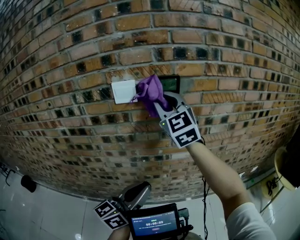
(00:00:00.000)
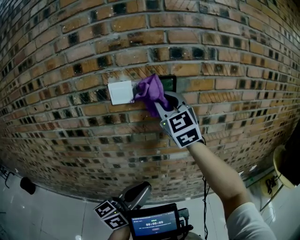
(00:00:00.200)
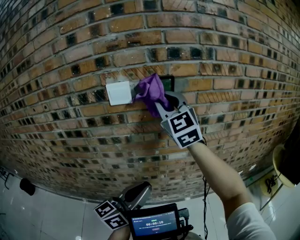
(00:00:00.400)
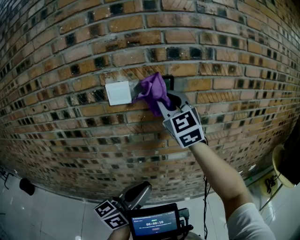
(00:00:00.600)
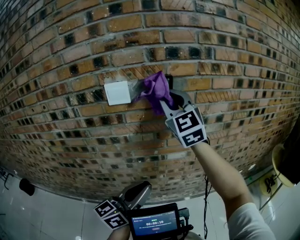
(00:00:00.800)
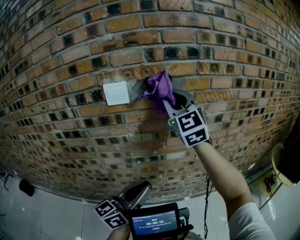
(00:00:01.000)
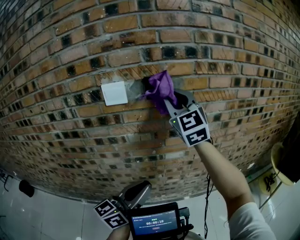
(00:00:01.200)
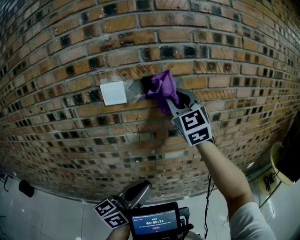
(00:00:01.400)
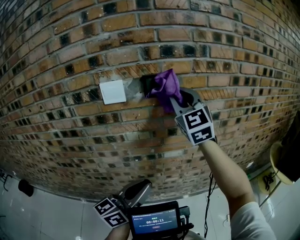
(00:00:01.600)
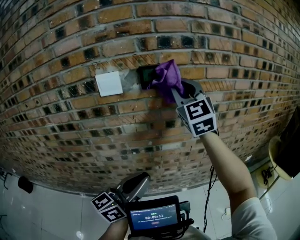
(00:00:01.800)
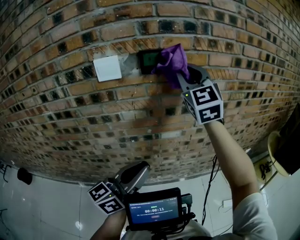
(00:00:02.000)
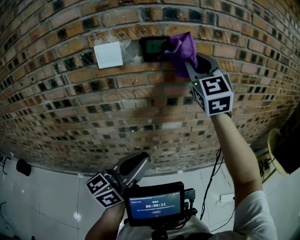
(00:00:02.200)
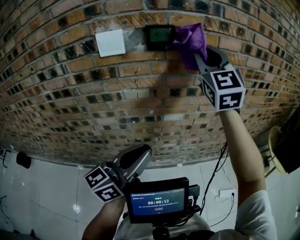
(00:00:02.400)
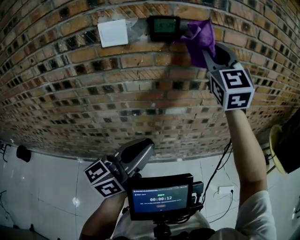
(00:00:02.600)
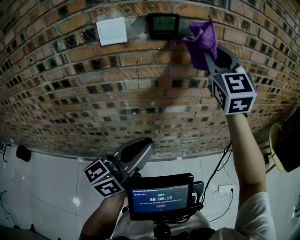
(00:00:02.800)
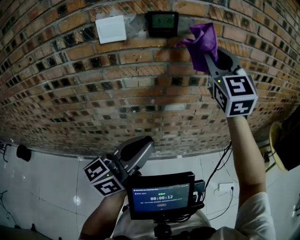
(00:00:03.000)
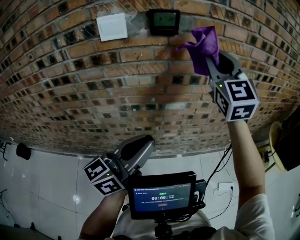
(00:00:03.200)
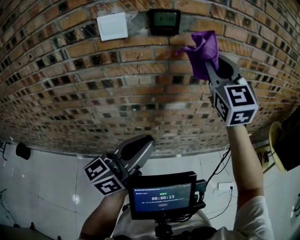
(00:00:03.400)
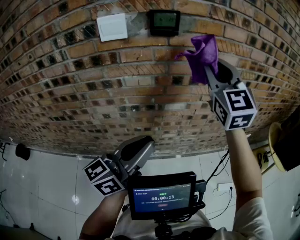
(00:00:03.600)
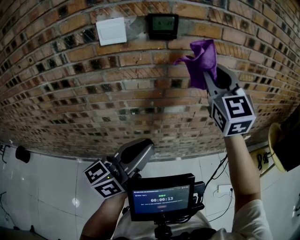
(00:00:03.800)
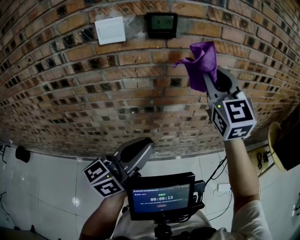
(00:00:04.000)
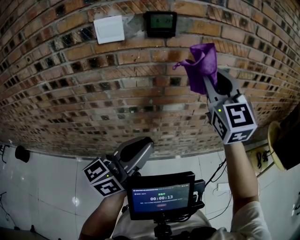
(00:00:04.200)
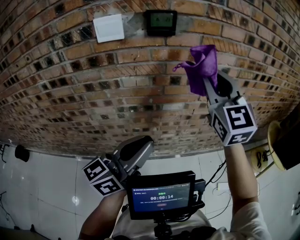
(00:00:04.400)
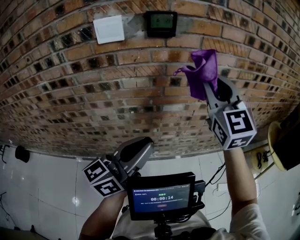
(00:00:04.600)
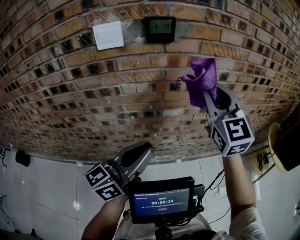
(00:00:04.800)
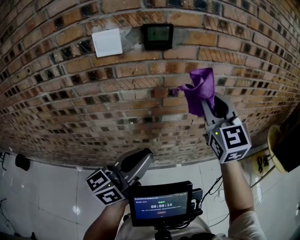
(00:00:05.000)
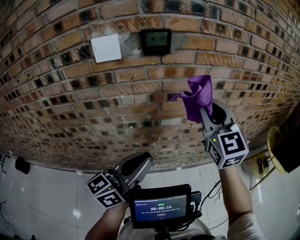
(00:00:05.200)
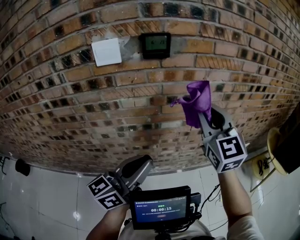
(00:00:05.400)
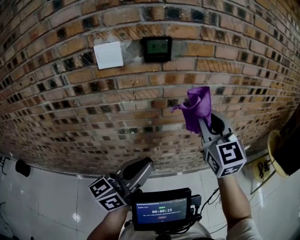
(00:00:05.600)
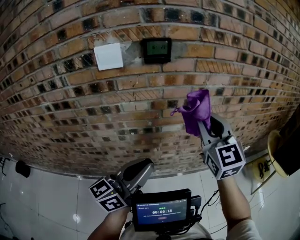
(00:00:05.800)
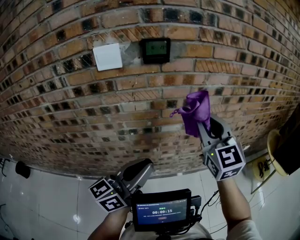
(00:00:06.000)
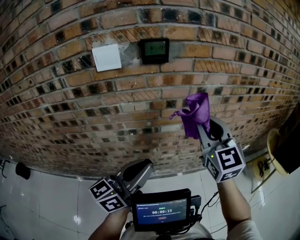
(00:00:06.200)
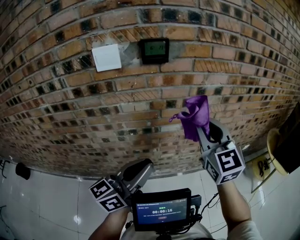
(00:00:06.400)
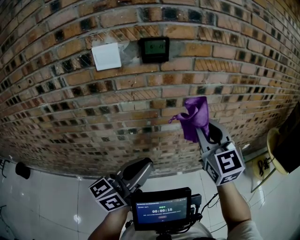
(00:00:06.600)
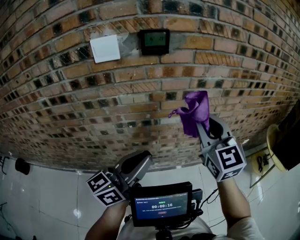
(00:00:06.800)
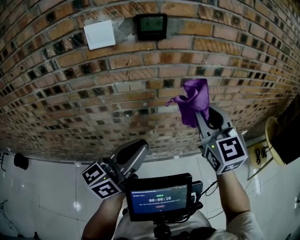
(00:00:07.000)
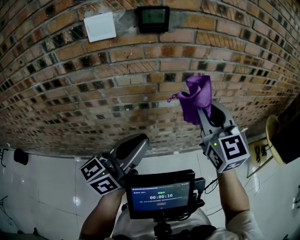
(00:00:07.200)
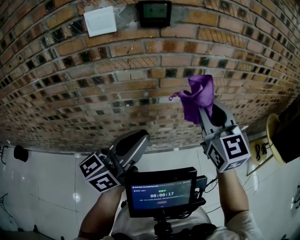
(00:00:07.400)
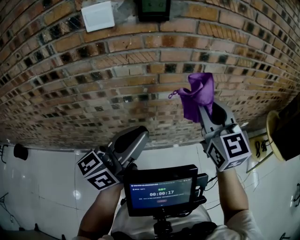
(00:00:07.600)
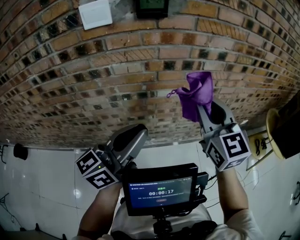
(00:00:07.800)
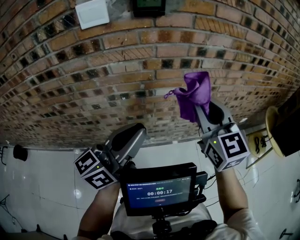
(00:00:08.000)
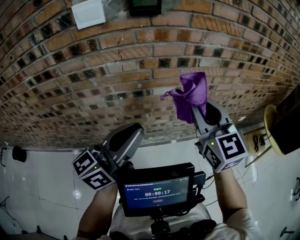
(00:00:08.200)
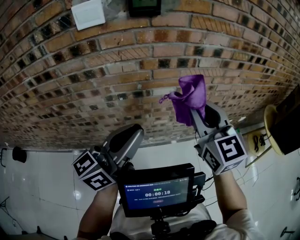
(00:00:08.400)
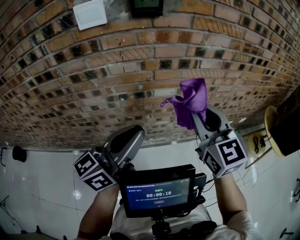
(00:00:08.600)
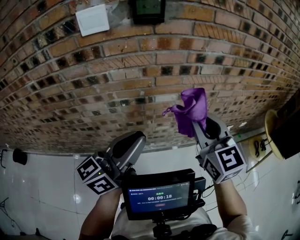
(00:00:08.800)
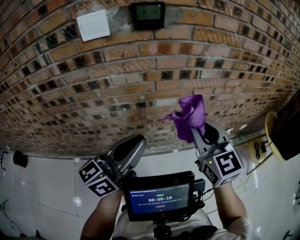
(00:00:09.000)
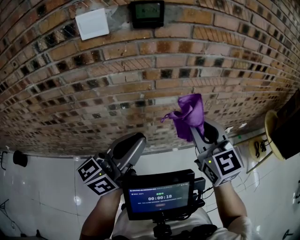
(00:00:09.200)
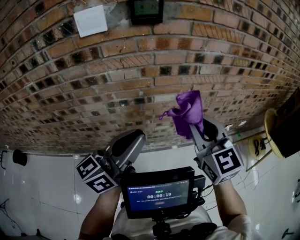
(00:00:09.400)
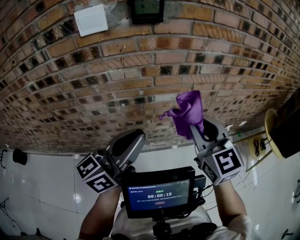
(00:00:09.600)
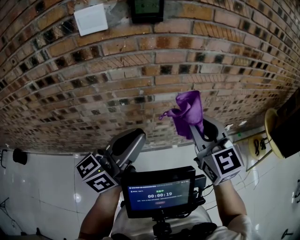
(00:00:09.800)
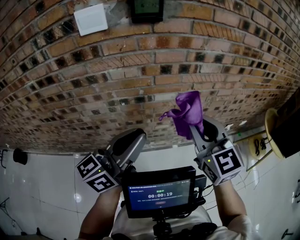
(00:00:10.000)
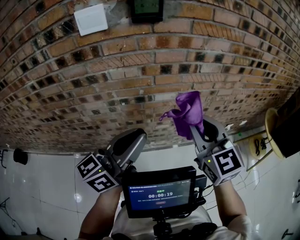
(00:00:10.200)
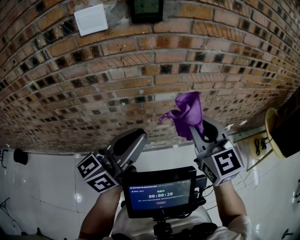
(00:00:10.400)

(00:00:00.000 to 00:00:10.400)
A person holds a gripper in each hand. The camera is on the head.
00:00:00.000 - 00:00:01.400: The right gripper shifts roughly 10 cm to the right.
00:00:01.400 - 00:00:03.000: The right gripper is displaced to the right by some 10 cm.
00:00:03.000 - 00:00:04.400: The right gripper is displaced downward by some 5 cm.
00:00:04.400 - 00:00:06.000: The right gripper goes about 5 cm downward.
00:00:06.000 - 00:00:07.400: There are only small adjustments of the grippers.
00:00:07.400 - 00:00:09.000: The right gripper ends up some 5 cm from where it was.
00:00:09.000 - 00:00:10.400: Neither gripper changes place.

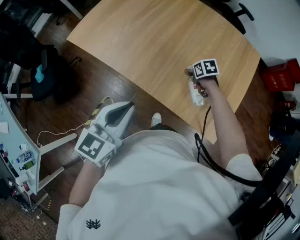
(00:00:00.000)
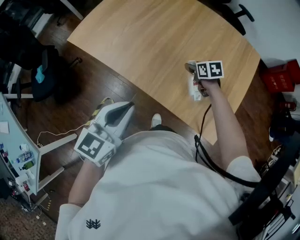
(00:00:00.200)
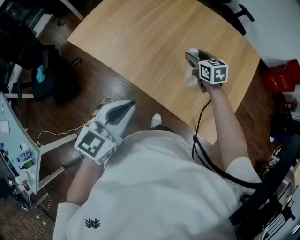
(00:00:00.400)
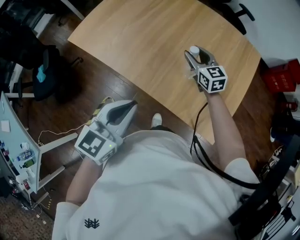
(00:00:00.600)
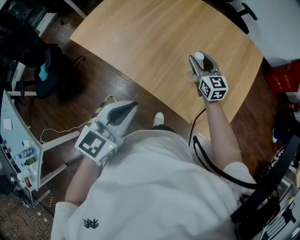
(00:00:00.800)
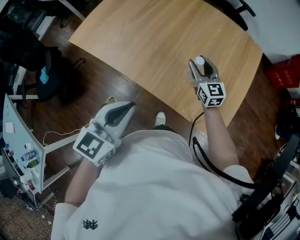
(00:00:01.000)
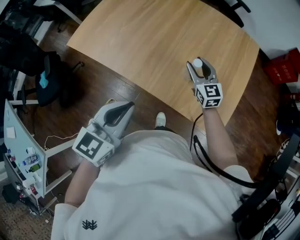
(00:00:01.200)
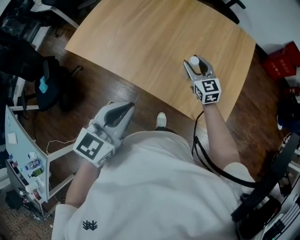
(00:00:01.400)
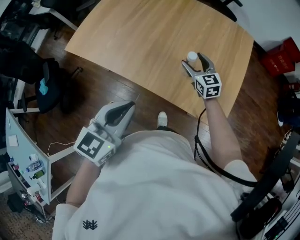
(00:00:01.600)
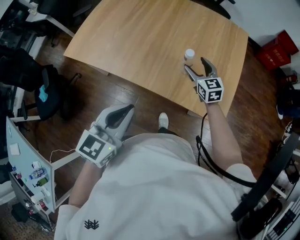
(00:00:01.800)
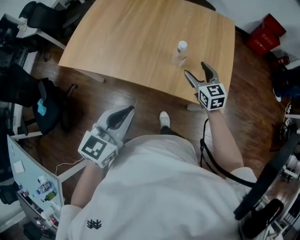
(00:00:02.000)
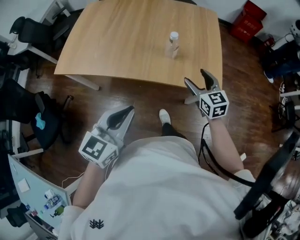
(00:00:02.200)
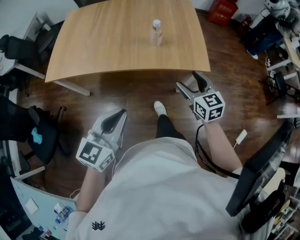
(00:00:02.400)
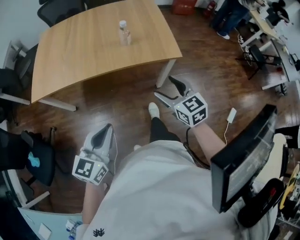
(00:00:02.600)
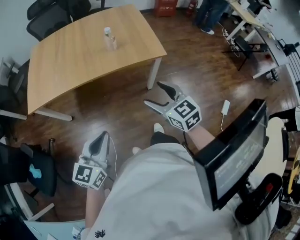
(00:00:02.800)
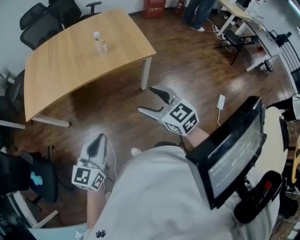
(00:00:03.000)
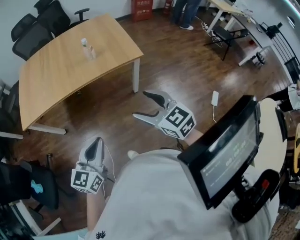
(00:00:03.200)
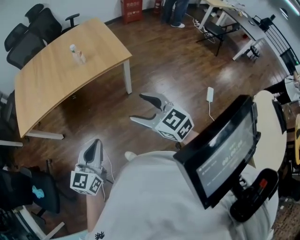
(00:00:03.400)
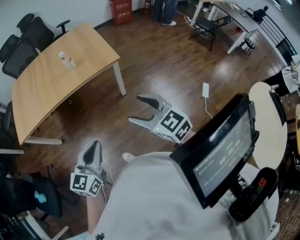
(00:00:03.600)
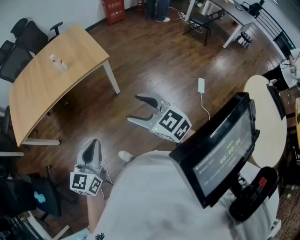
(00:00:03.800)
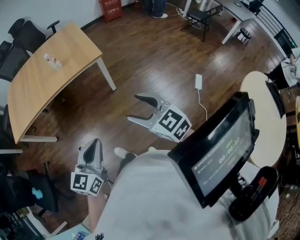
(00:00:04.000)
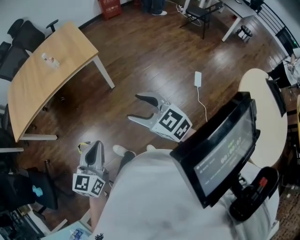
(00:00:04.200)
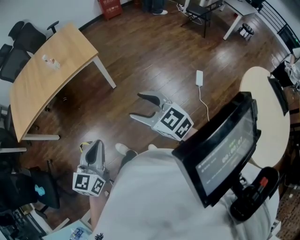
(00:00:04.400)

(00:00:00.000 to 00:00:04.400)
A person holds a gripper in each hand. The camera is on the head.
00:00:00.000 - 00:00:01.400: The right gripper travels upward by about 15 cm, and tilts its fingers roughly 50 degrees upward.
00:00:01.400 - 00:00:03.000: The right gripper ends up about 50 cm from where it was, swivels approximately 30 degrees, and opens up; the left gripper shifts by some 25 cm, and turns by approximately 30 degrees.
00:00:03.000 - 00:00:04.400: The grippers both shift to the right and backward by about 25 cm.

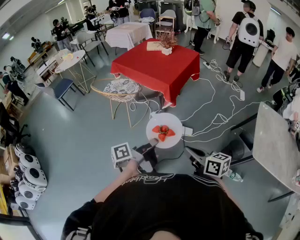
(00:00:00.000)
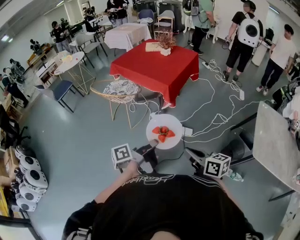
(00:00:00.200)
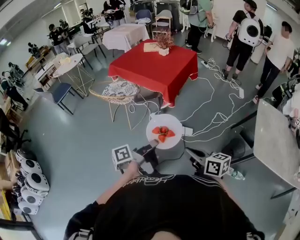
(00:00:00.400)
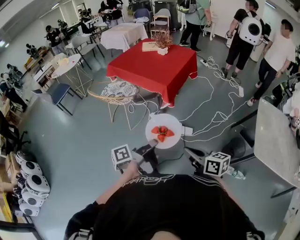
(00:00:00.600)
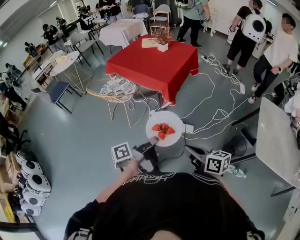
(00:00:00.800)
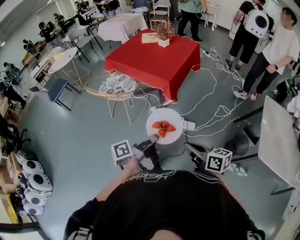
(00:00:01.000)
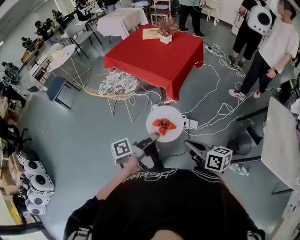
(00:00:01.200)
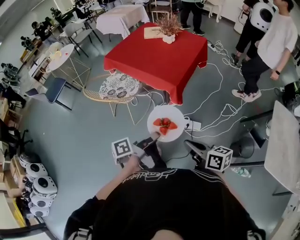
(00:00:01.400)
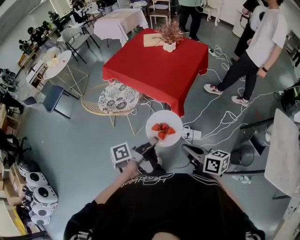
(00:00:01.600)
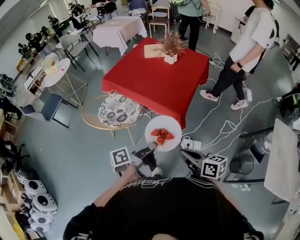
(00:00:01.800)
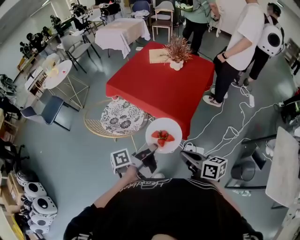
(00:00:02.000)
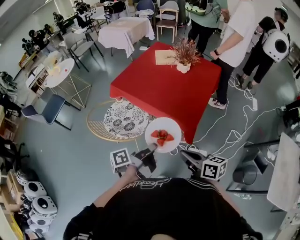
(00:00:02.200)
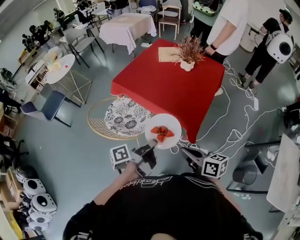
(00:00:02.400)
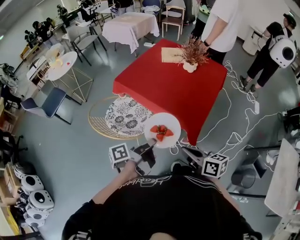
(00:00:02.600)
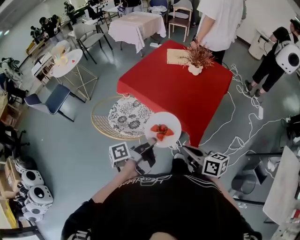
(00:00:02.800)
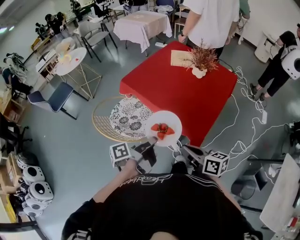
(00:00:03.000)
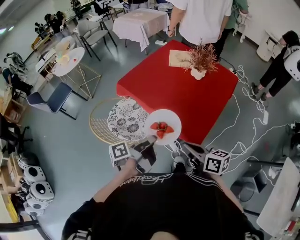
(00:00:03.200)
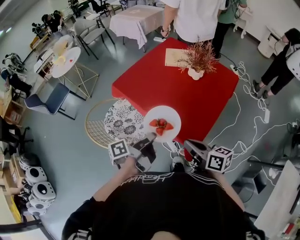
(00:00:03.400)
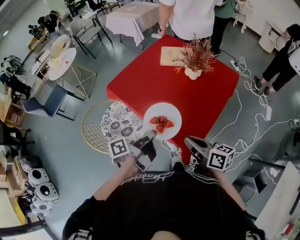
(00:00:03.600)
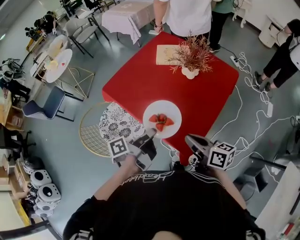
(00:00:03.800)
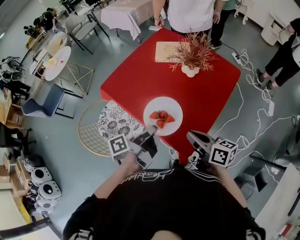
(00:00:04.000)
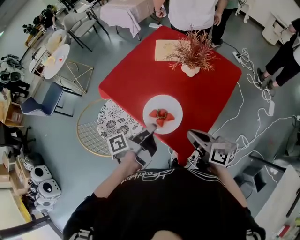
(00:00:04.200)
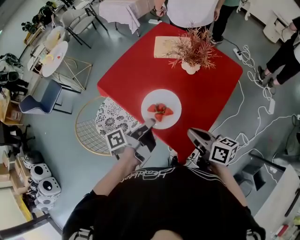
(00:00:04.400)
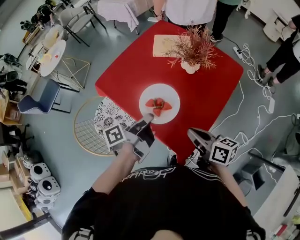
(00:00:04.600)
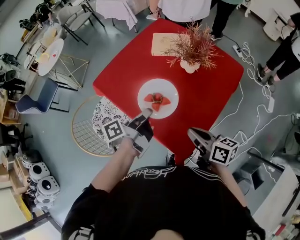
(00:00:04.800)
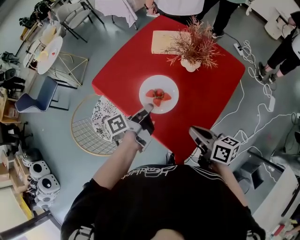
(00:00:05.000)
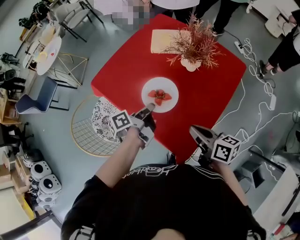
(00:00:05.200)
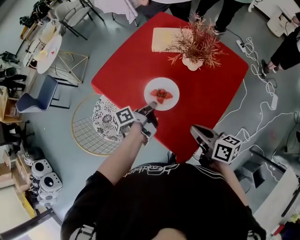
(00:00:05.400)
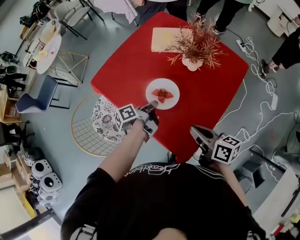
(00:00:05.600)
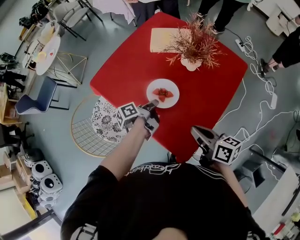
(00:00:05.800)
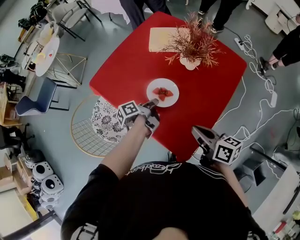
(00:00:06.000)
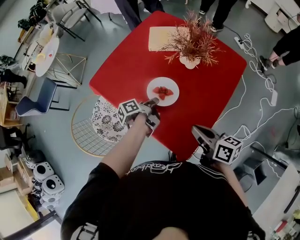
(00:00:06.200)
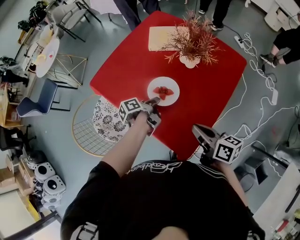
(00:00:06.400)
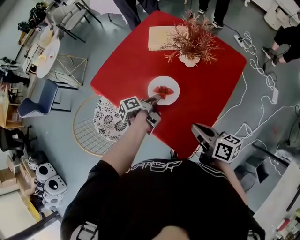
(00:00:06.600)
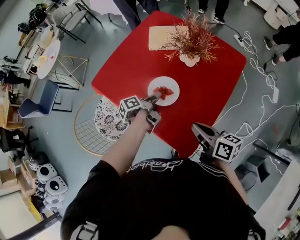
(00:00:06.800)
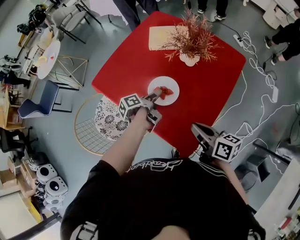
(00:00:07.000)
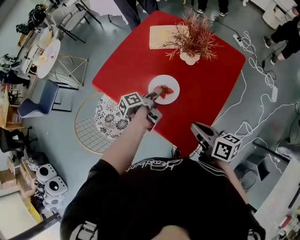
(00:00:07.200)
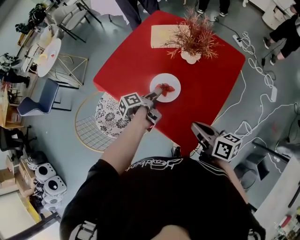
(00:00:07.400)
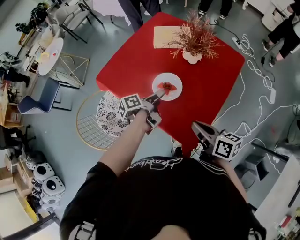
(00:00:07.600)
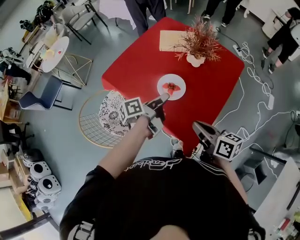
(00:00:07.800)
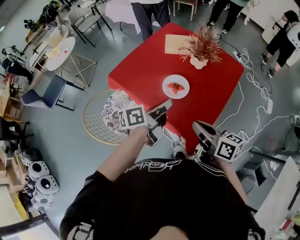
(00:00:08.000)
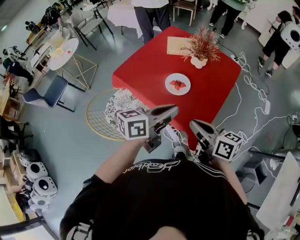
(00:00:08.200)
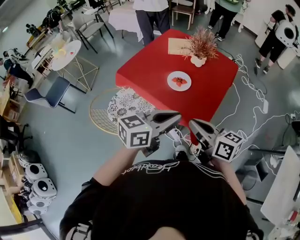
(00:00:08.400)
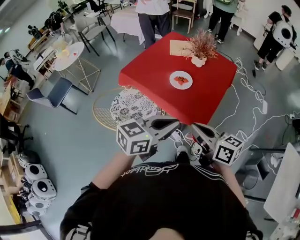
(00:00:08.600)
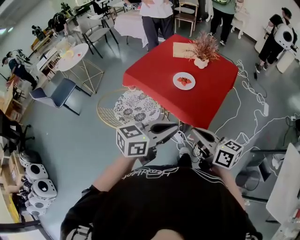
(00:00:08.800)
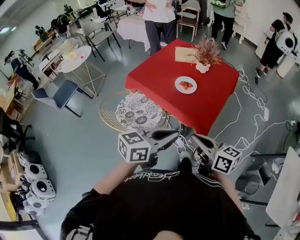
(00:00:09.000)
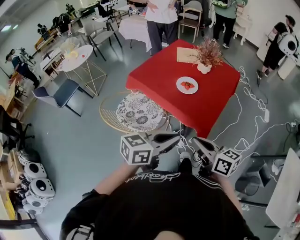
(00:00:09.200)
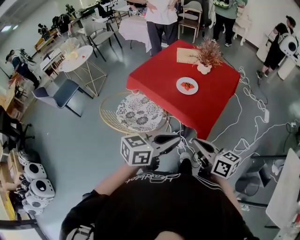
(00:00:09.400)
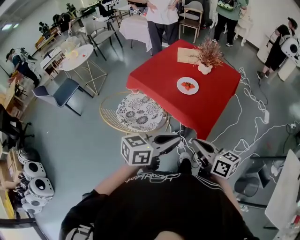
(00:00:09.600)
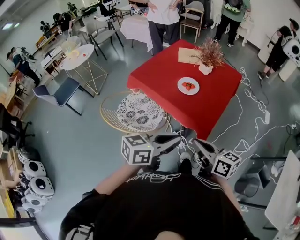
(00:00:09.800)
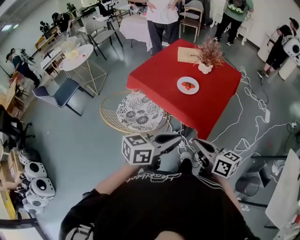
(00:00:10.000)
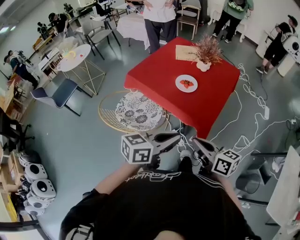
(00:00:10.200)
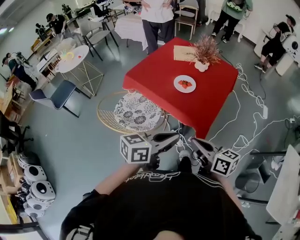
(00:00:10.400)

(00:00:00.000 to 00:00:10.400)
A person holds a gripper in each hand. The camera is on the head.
00:00:00.000 - 00:00:01.400: The right gripper changes place by roughly 20 cm.
00:00:01.400 - 00:00:03.000: The right gripper changes place by some 30 cm.
00:00:03.000 - 00:00:04.400: The right gripper changes place by roughly 25 cm.
00:00:07.400 - 00:00:09.000: The right gripper moves approximately 30 cm.
